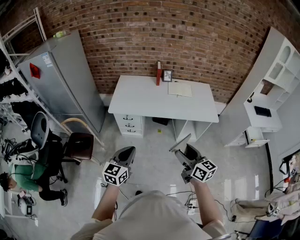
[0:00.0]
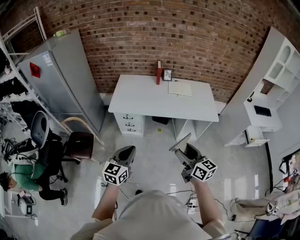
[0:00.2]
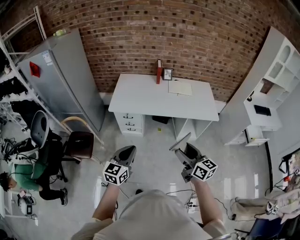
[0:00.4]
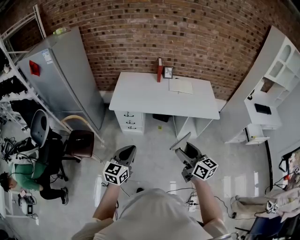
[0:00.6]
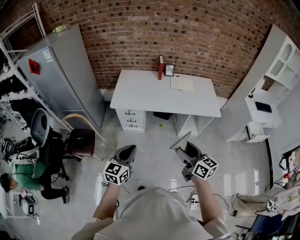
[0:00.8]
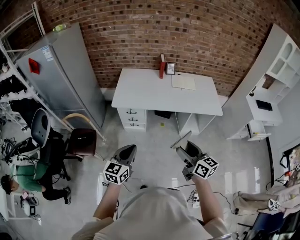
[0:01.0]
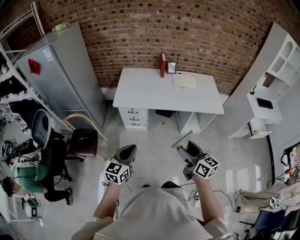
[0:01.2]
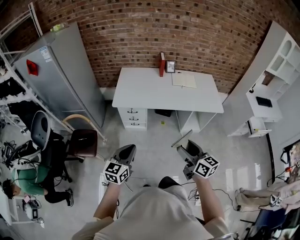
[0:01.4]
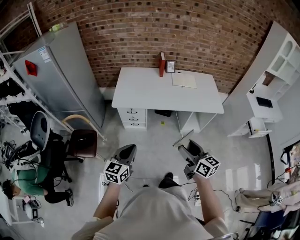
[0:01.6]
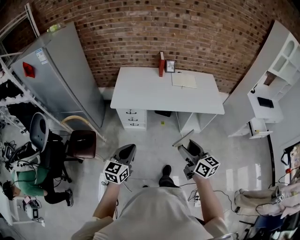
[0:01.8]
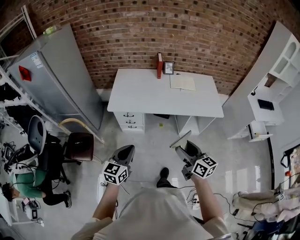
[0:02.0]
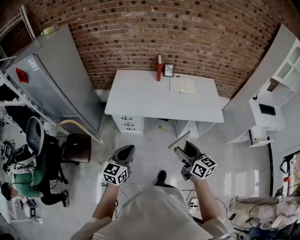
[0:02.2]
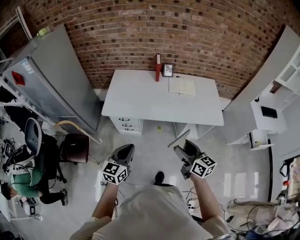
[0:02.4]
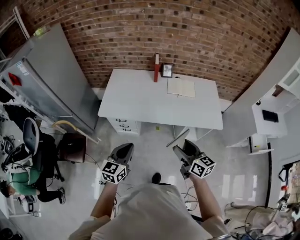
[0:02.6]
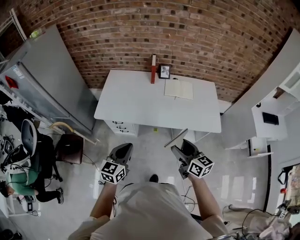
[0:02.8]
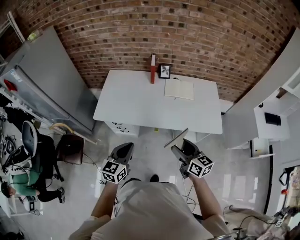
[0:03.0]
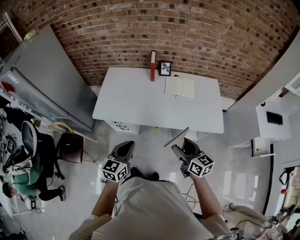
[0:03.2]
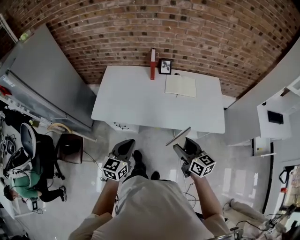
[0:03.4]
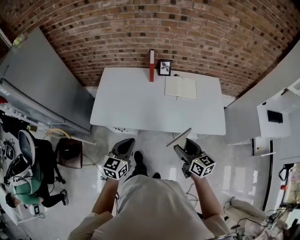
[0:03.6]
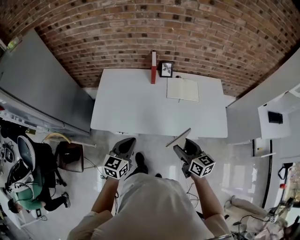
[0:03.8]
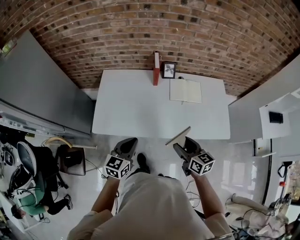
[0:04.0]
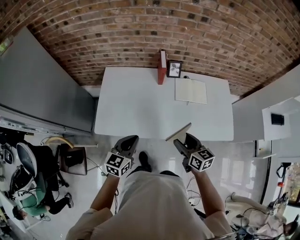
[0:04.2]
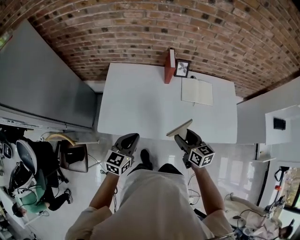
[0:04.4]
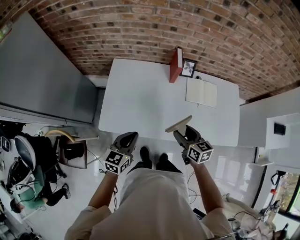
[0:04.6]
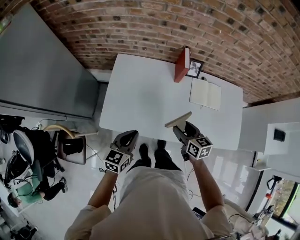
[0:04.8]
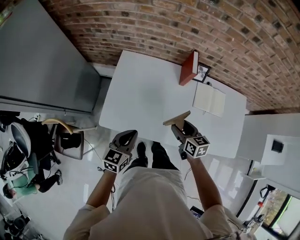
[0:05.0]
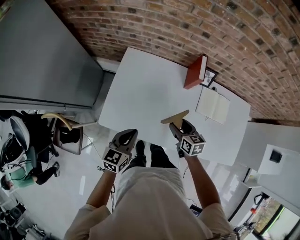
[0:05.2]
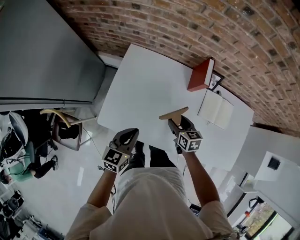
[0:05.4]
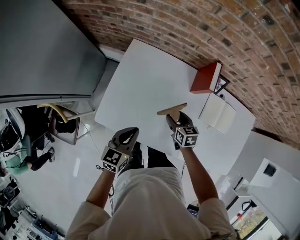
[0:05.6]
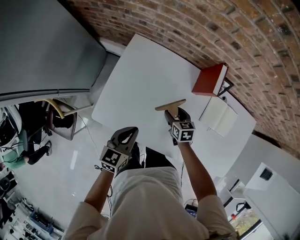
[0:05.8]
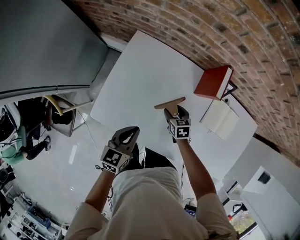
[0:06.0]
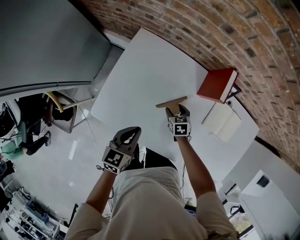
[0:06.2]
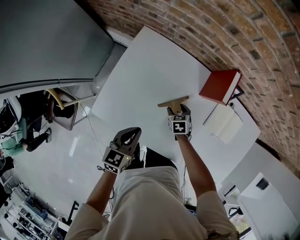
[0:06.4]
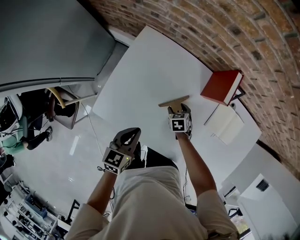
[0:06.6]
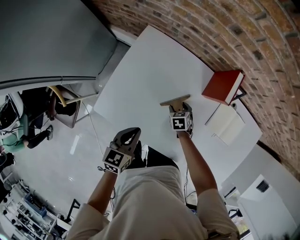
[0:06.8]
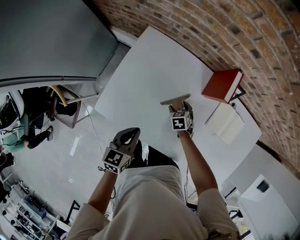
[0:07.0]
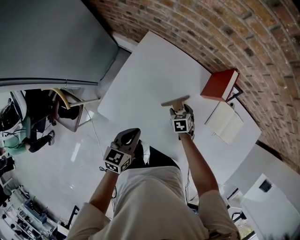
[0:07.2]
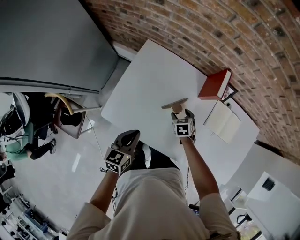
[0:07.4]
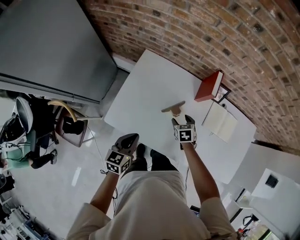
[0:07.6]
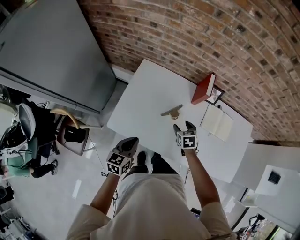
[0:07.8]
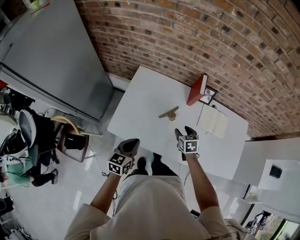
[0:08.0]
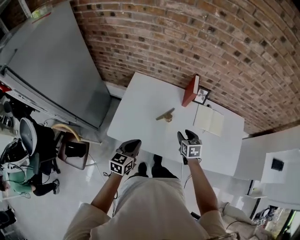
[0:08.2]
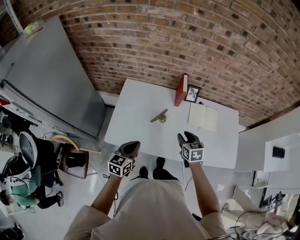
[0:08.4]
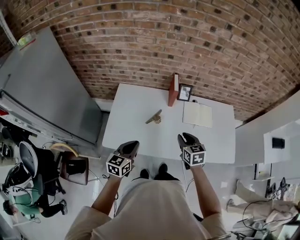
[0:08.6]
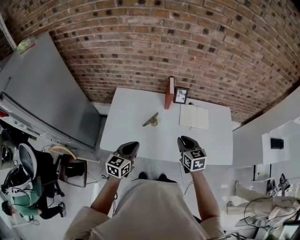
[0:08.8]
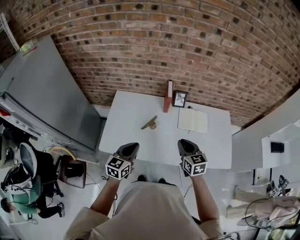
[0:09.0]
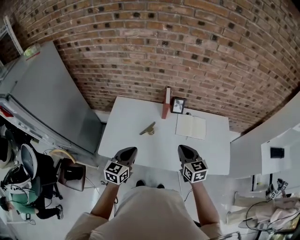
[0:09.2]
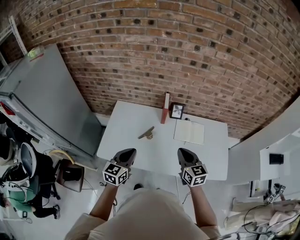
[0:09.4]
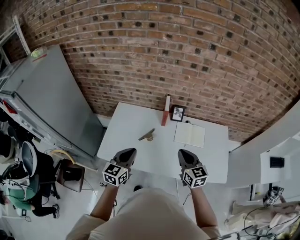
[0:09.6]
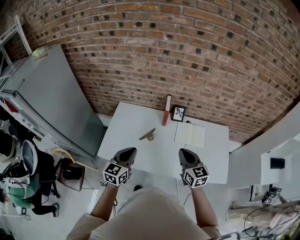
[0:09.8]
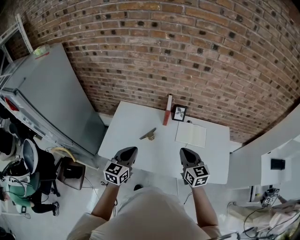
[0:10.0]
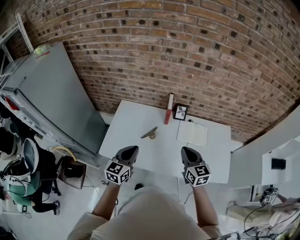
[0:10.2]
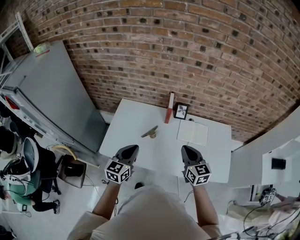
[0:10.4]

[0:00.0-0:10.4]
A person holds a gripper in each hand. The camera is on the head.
0:00.0 to 0:01.4: Both grippers travel together to the left, approximately 10 cm.
0:01.4 to 0:03.0: Both grippers move forward and to the right, roughly 30 cm.
0:03.0 to 0:04.4: Both grippers move forward and to the left, roughly 30 cm.
0:04.4 to 0:06.0: The left gripper shifts approximately 20 cm forward and downward, and turns by roughly 20 degrees. Meanwhile the right gripper moves forward and downward, about 40 cm, and rotates about 40 degrees.
0:06.0 to 0:07.4: The left gripper moves approximately 5 cm.
0:07.4 to 0:09.0: The right gripper shifts some 40 cm upward, backward and to the right, tips its fingers upward by about 40 degrees, and closes. Meanwhile the left gripper shifts some 20 cm upward, to the right and backward, and turns by some 30 degrees.
0:09.0 to 0:10.4: The grippers both shift upward by about 5 cm.

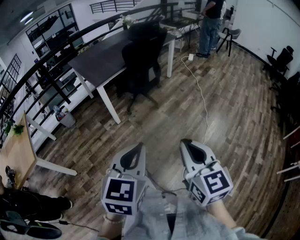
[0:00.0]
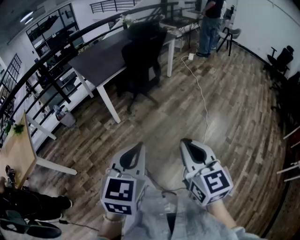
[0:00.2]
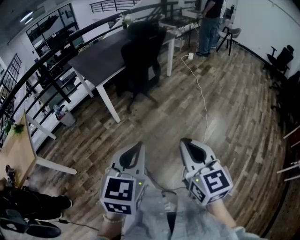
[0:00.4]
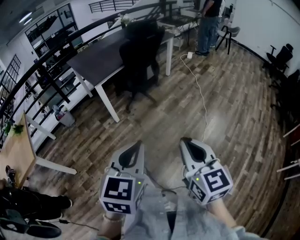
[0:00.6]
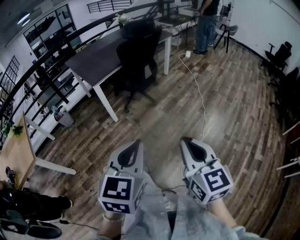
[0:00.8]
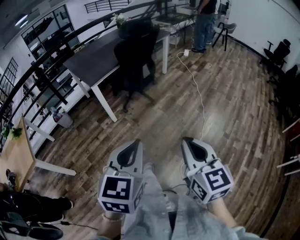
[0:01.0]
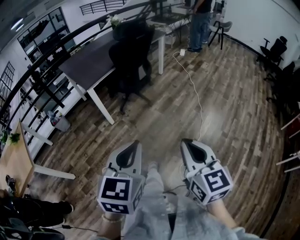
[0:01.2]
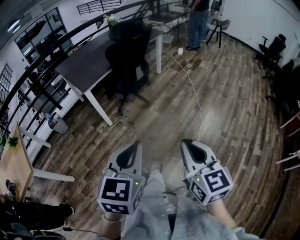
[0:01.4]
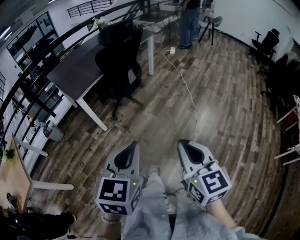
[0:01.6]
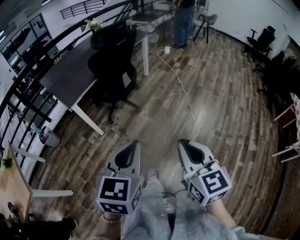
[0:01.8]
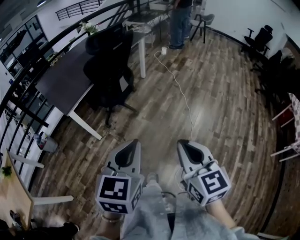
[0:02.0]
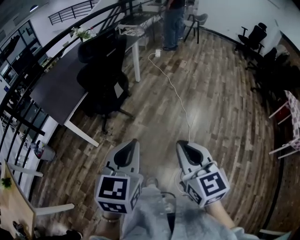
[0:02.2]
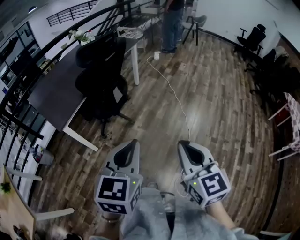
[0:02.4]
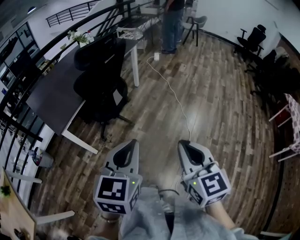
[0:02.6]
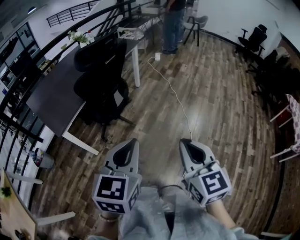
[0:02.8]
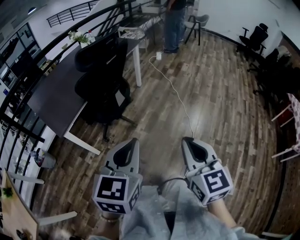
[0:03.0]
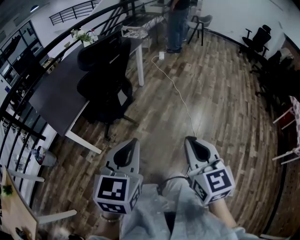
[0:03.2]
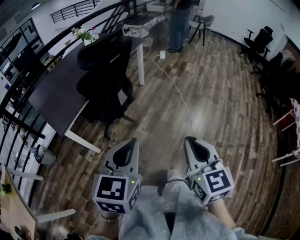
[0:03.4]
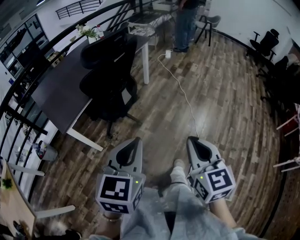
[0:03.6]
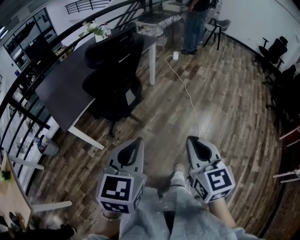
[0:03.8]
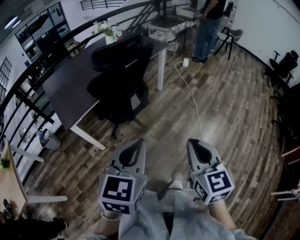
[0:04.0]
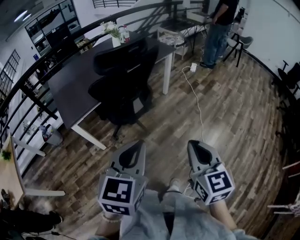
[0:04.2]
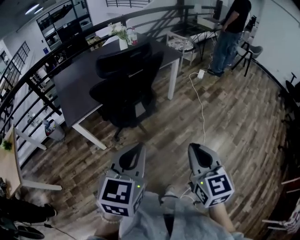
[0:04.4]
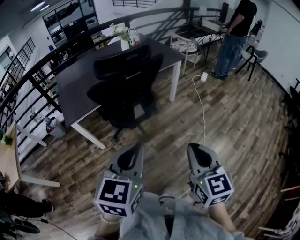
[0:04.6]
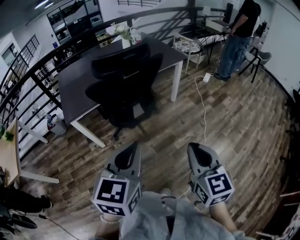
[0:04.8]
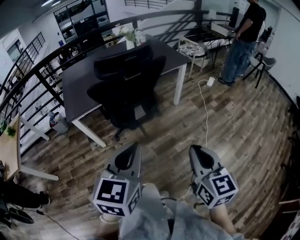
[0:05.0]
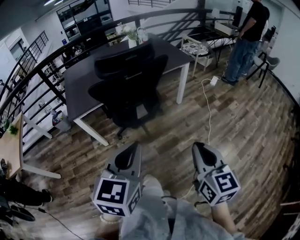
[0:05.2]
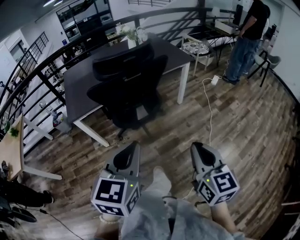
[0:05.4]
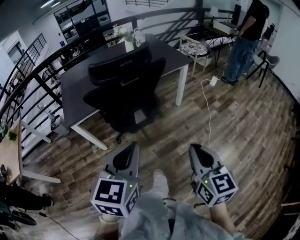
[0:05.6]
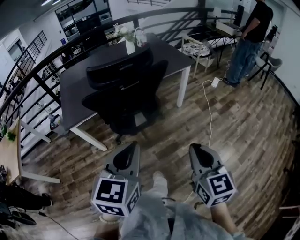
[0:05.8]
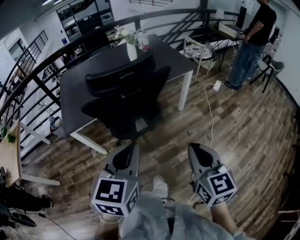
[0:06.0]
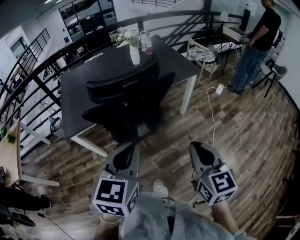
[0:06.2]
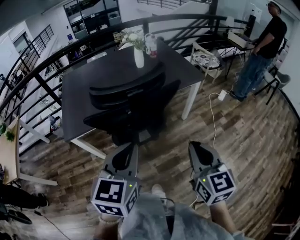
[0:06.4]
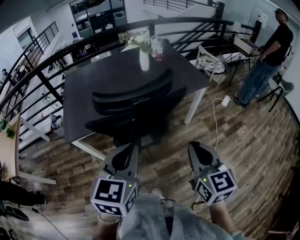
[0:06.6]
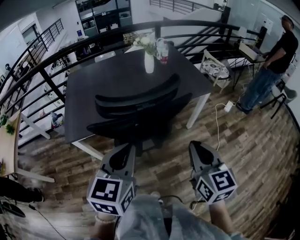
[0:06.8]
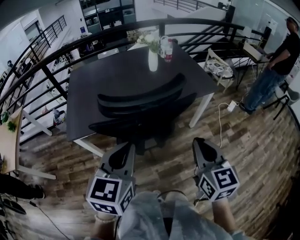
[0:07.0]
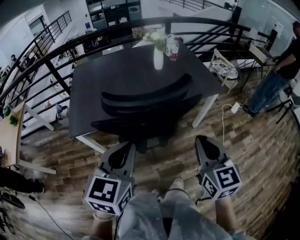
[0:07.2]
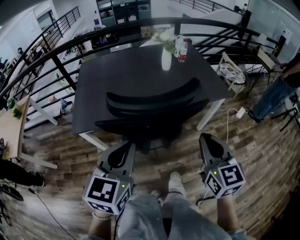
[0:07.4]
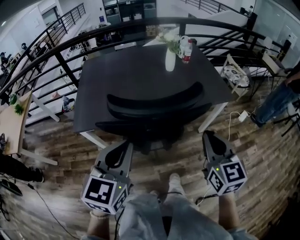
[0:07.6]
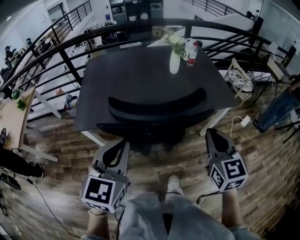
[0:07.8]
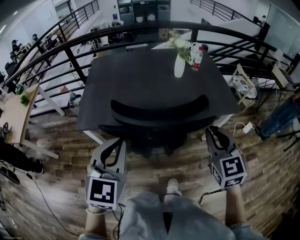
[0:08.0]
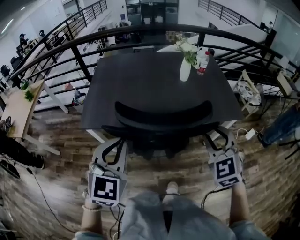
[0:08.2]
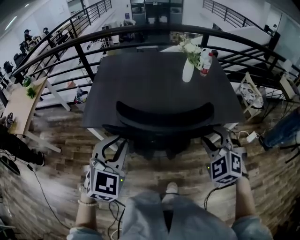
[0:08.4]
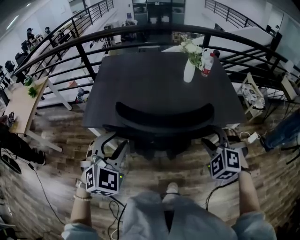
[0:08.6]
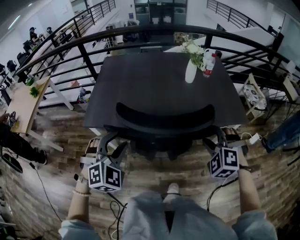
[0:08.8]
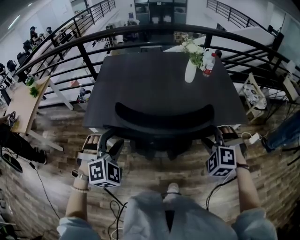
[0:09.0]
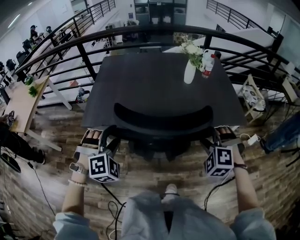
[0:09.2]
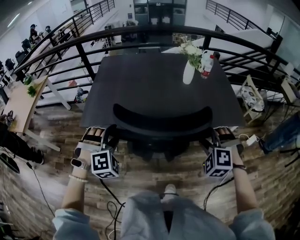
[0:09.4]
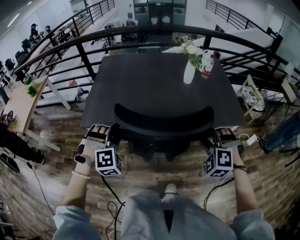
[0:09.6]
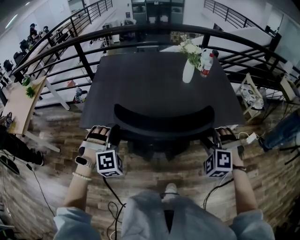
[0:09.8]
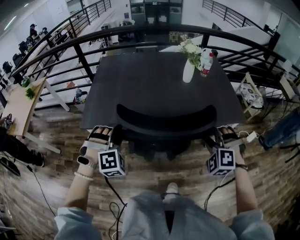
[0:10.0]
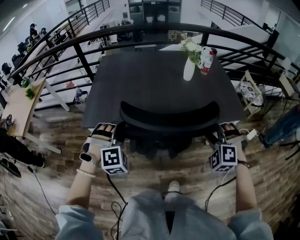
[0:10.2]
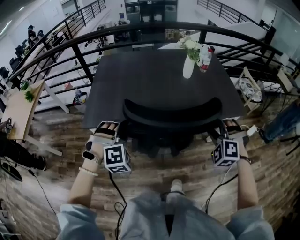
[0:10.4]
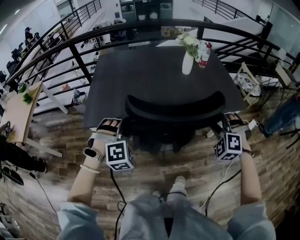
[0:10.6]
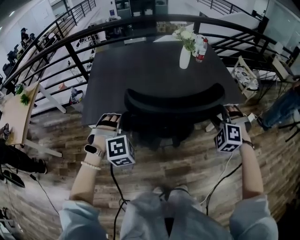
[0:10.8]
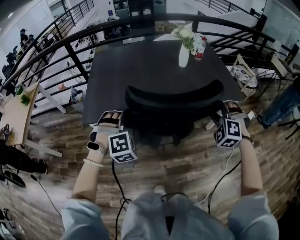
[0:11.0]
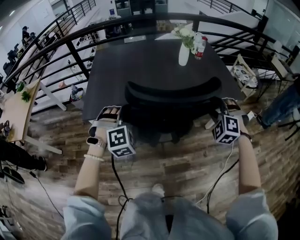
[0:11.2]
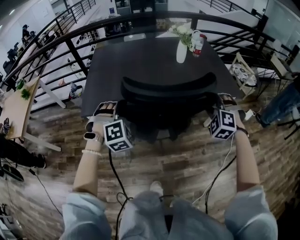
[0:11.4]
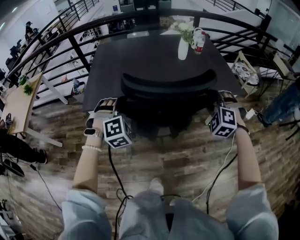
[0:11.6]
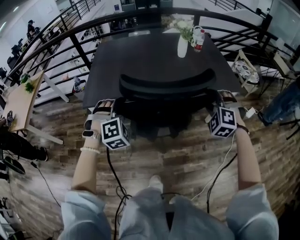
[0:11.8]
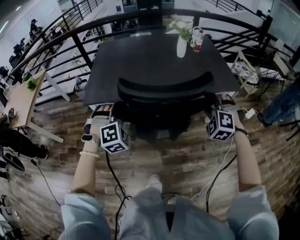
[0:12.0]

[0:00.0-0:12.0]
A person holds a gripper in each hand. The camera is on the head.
0:00.0 to 0:01.6: The left gripper travels forward and to the right by about 10 cm, while the right gripper travels to the right and forward by approximately 10 cm.
0:01.6 to 0:03.0: The grippers both shift forward by roughly 25 cm.
0:03.0 to 0:04.4: The left gripper shifts about 15 cm forward and to the right, and rotates roughly 20 degrees. Meanwhile the right gripper shifts roughly 20 cm forward, and changes its angle by about 20 degrees.
0:04.4 to 0:06.0: The left gripper heads forward, covering about 15 cm; the right gripper travels forward and to the right by about 20 cm.
0:06.0 to 0:07.6: The right gripper goes roughly 25 cm forward, while the left gripper shifts some 20 cm forward and to the left.
0:07.6 to 0:09.0: The right gripper moves forward and downward, about 15 cm, rotates around the line of its fingers by about 70 degrees, counterclockwise from behind, and opens. The left gripper heads downward, forward and to the left, covering roughly 15 cm, rolls clockwise, seen from behind, by roughly 60 degrees, and opens up.
0:09.0 to 0:10.4: The left gripper changes place by some 5 cm.
0:10.4 to 0:12.0: The grippers both shift backward by approximately 5 cm.

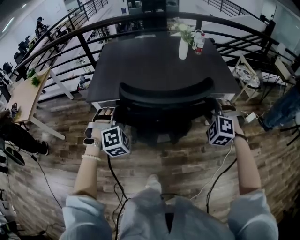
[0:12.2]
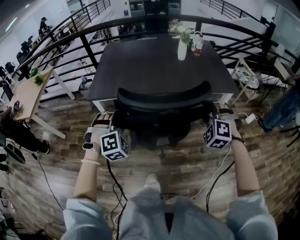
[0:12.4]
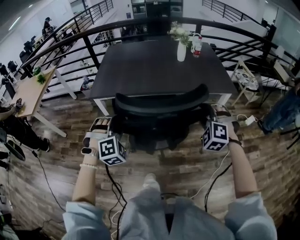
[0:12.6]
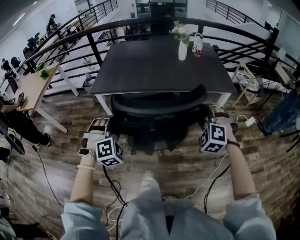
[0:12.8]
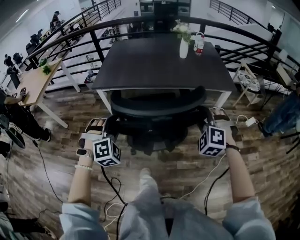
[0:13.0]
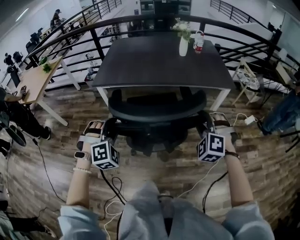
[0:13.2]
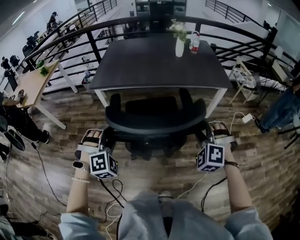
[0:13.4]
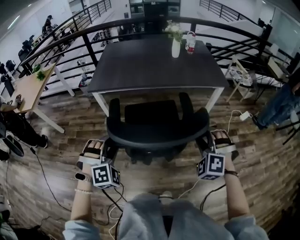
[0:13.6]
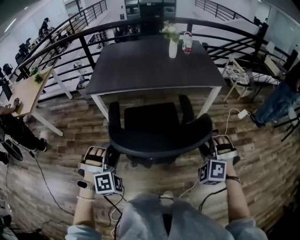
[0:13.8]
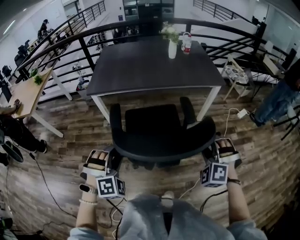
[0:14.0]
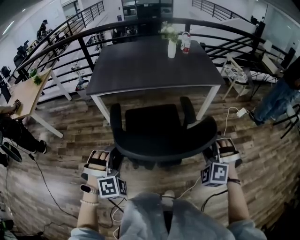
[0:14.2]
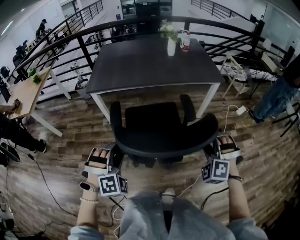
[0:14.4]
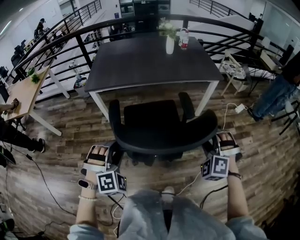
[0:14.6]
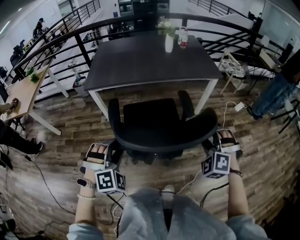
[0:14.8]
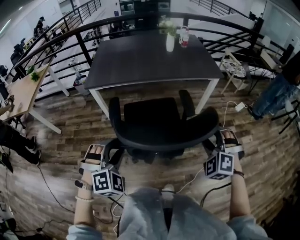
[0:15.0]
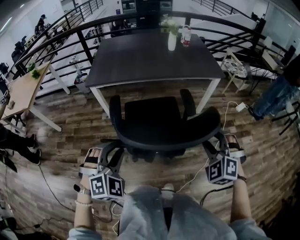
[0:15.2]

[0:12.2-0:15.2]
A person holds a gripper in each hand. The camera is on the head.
0:12.2 to 0:13.8: Both grippers move backward, approximately 25 cm.
0:13.8 to 0:15.2: The left gripper moves some 5 cm.
